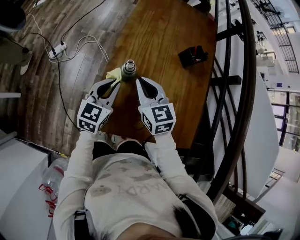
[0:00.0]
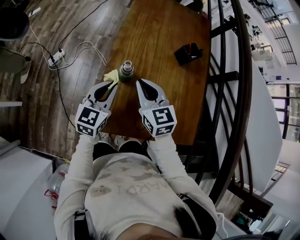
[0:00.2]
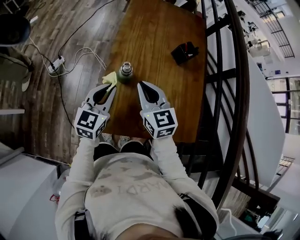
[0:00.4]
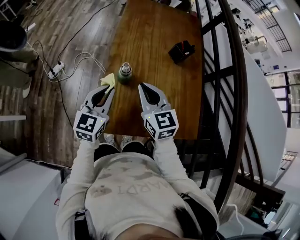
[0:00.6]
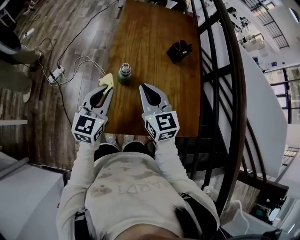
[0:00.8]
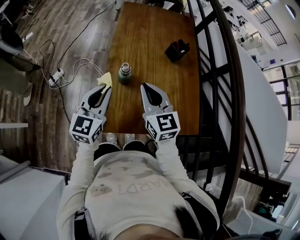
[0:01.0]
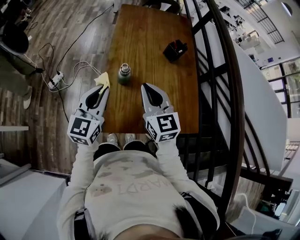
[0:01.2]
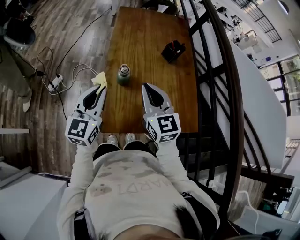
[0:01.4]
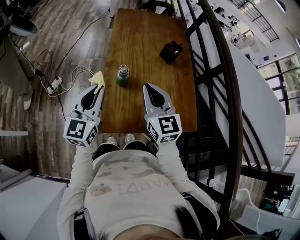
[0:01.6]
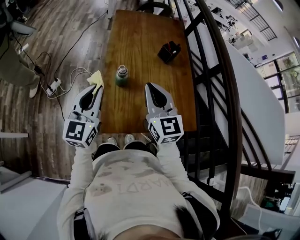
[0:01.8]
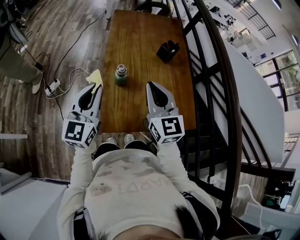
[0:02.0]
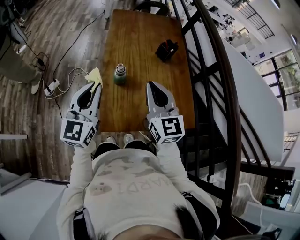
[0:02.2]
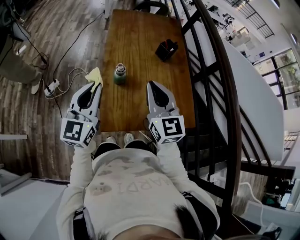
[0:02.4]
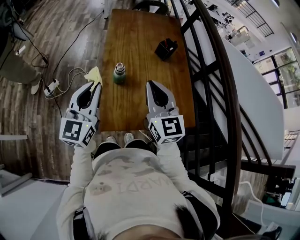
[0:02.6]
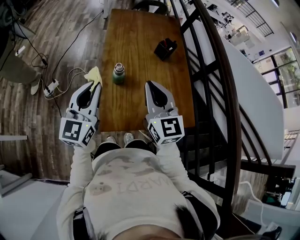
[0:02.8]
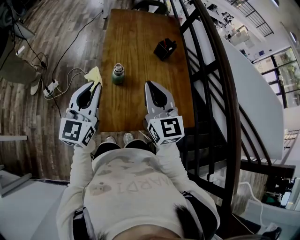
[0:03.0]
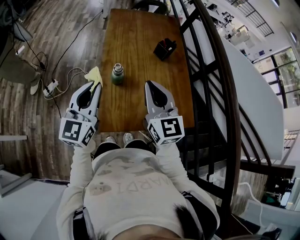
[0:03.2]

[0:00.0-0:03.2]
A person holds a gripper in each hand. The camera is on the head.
0:00.0 to 0:01.6: The right gripper goes approximately 15 cm upward and backward, and turns by some 20 degrees; the left gripper is displaced upward, backward and to the left by roughly 15 cm.
0:01.6 to 0:03.2: The grippers make only small movements.

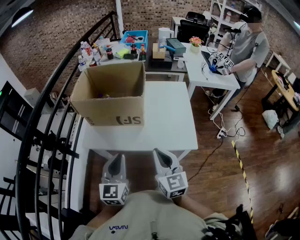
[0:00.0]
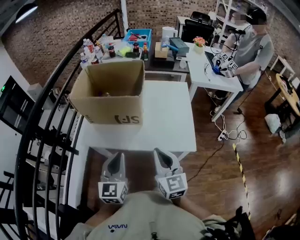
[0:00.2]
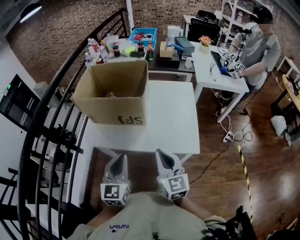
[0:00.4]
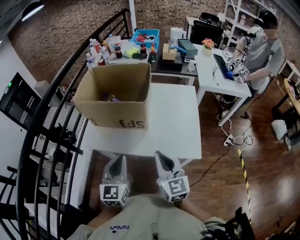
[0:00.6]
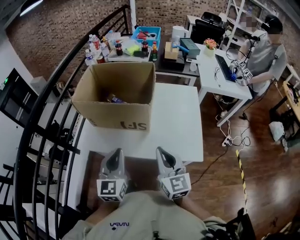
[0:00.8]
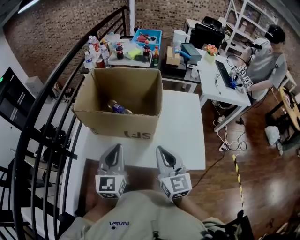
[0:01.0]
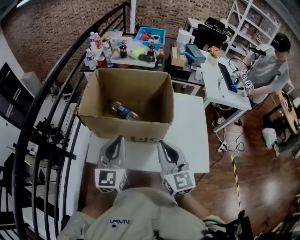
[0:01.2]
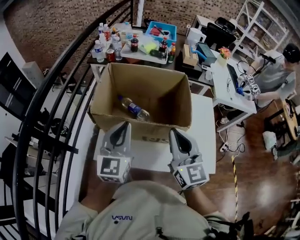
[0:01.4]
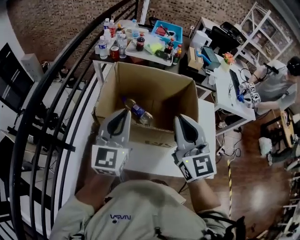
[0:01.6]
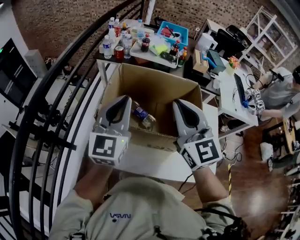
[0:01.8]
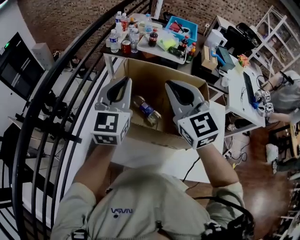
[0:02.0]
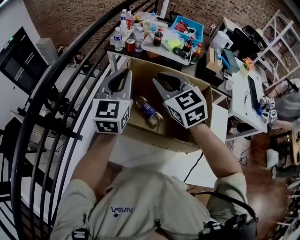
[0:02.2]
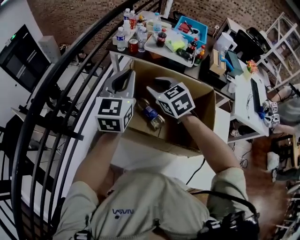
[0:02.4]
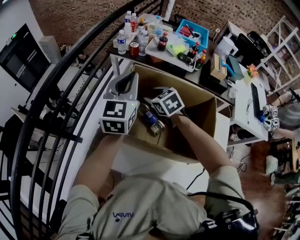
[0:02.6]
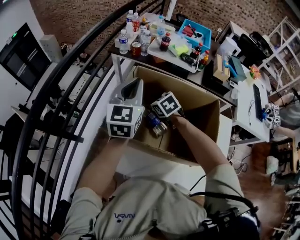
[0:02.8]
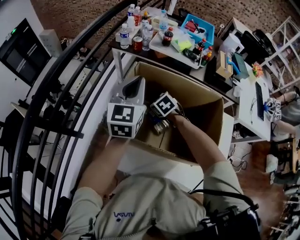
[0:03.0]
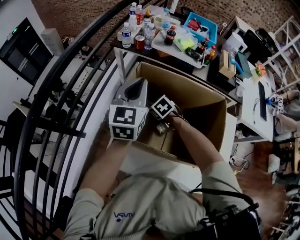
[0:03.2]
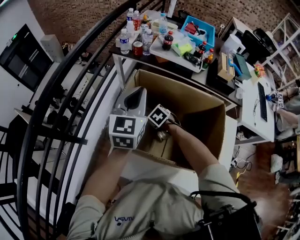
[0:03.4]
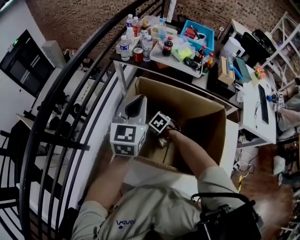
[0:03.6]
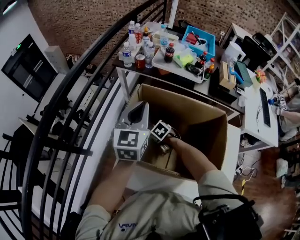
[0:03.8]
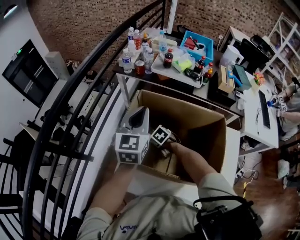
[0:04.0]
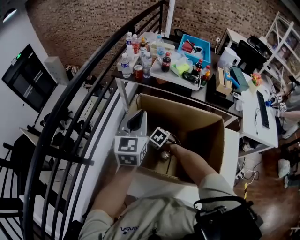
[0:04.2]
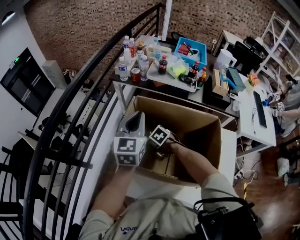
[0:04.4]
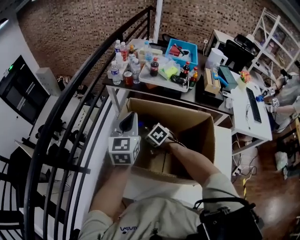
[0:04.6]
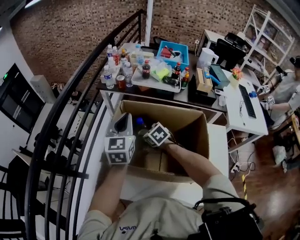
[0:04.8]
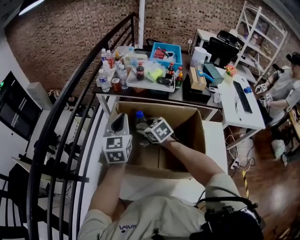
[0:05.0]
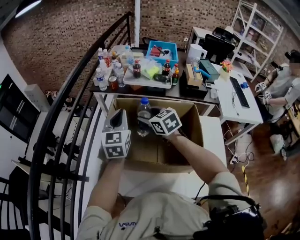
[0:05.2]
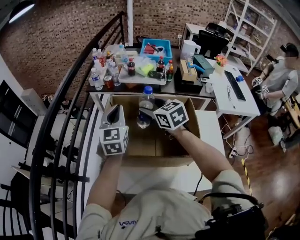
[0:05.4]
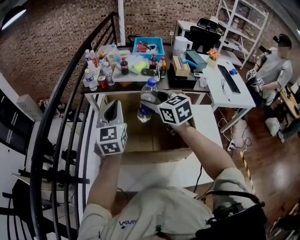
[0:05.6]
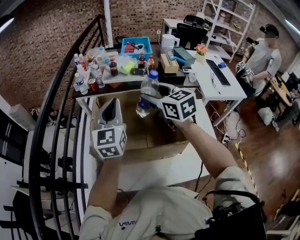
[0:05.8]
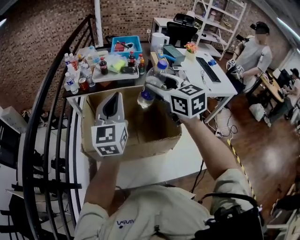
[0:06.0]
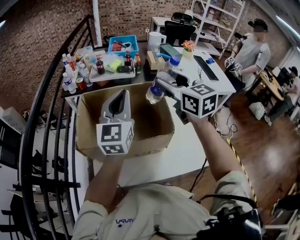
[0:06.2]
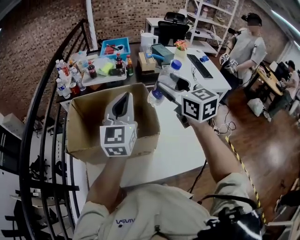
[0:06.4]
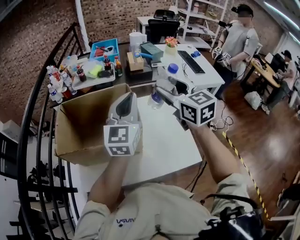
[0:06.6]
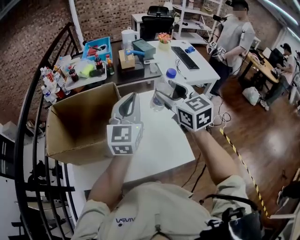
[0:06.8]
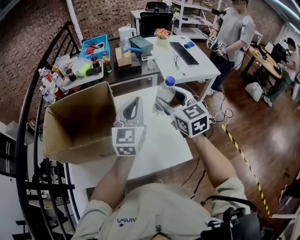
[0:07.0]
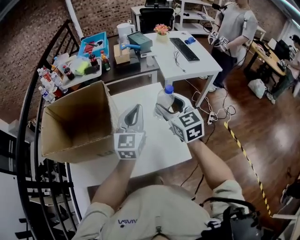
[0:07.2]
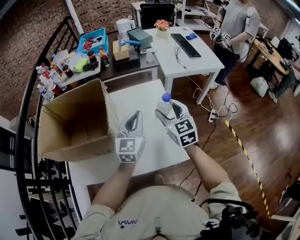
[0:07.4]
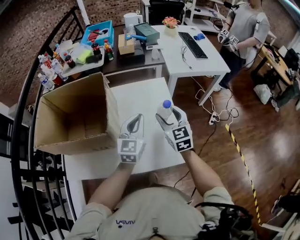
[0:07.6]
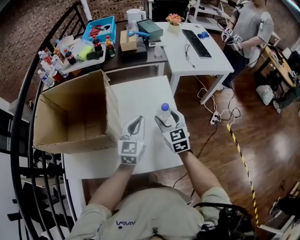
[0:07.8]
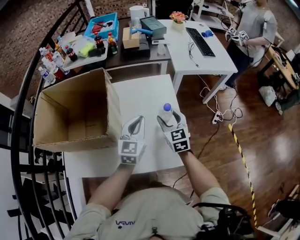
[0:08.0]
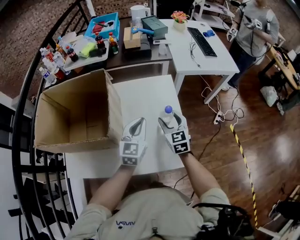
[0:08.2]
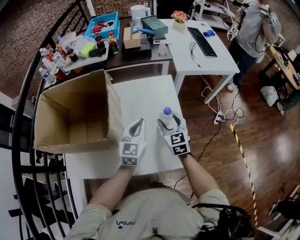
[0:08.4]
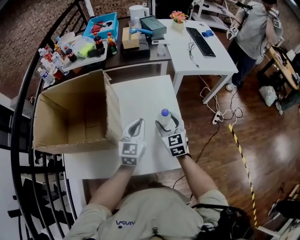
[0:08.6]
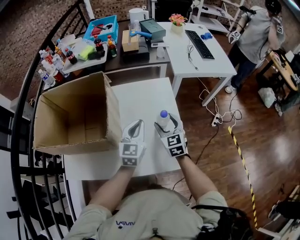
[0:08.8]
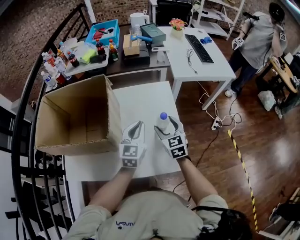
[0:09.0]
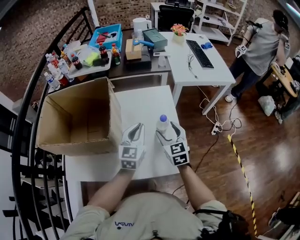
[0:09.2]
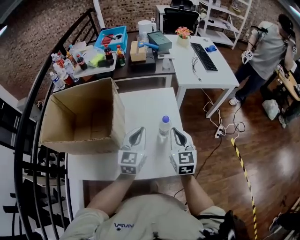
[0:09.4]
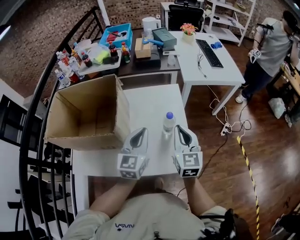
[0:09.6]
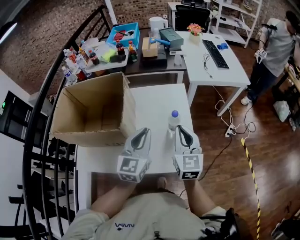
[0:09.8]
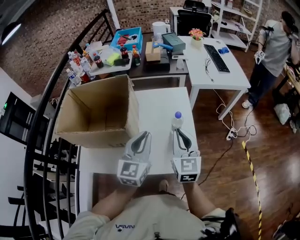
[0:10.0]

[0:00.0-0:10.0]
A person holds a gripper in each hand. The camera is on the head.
0:00.0 to 0:01.4: Both grippers travel together forward, about 25 cm.
0:01.4 to 0:02.8: The left gripper moves forward, roughly 25 cm. The right gripper heads forward and downward, covering about 40 cm, tilts its fingers roughly 50 degrees downward, and opens up.
0:02.8 to 0:04.2: The right gripper moves downward, roughly 15 cm, and swivels roughly 20 degrees.
0:04.2 to 0:05.8: The left gripper shifts about 10 cm upward. Meanwhile the right gripper moves upward, roughly 40 cm, and tilts its fingers approximately 50 degrees upward.
0:05.8 to 0:07.2: The two grippers go roughly 40 cm to the right. The right gripper swivels some 20 degrees.
0:07.2 to 0:08.6: Both grippers move downward, about 15 cm.
0:08.6 to 0:10.0: The two grippers go some 15 cm upward and backward. The right gripper closes its fingers.

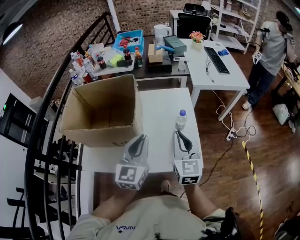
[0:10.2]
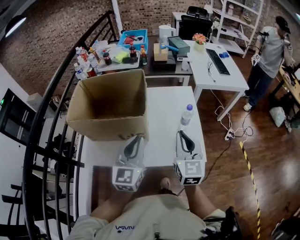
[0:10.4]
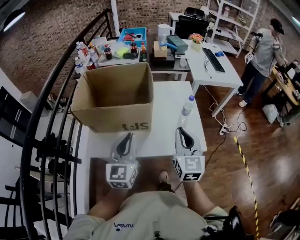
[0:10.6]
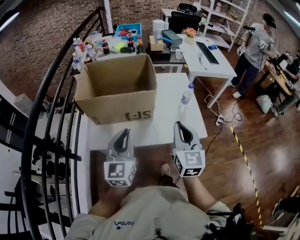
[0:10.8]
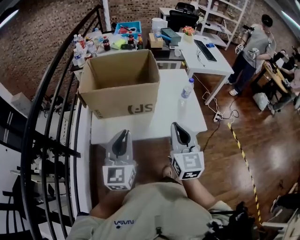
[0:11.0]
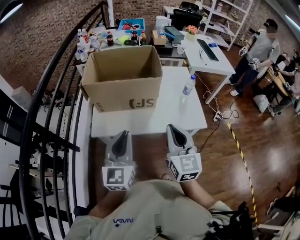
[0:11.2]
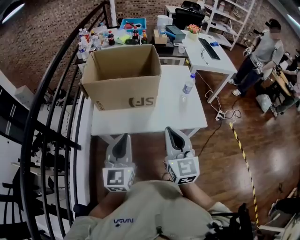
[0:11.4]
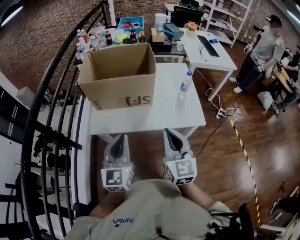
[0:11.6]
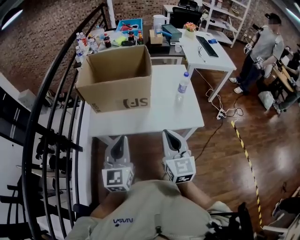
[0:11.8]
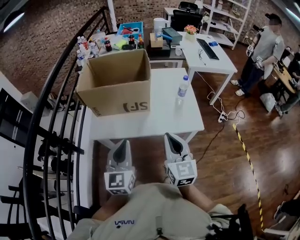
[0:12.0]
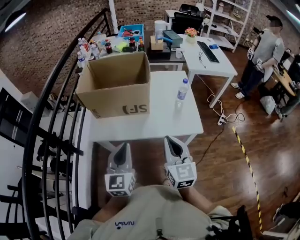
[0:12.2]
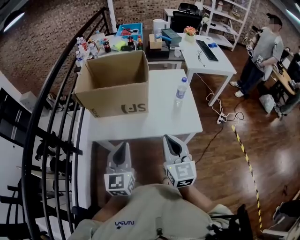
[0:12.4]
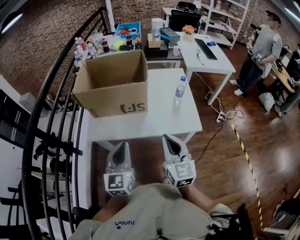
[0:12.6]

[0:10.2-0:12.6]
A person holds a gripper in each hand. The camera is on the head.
0:10.2 to 0:11.4: Both grippers travel together backward and to the left, some 30 cm.
0:11.4 to 0:12.6: The left gripper ends up roughly 5 cm from where it was; the right gripper moves to the right, about 5 cm.

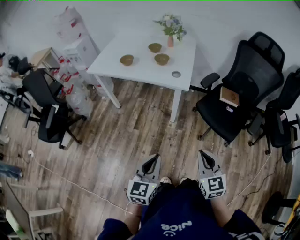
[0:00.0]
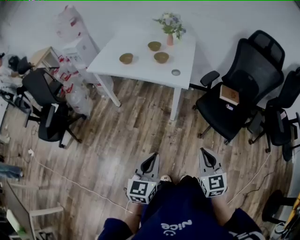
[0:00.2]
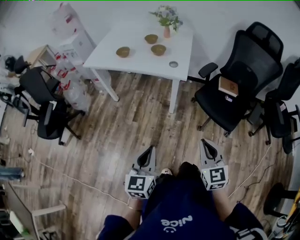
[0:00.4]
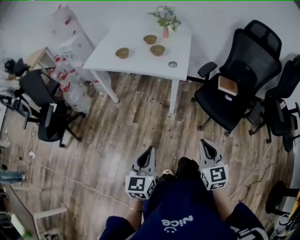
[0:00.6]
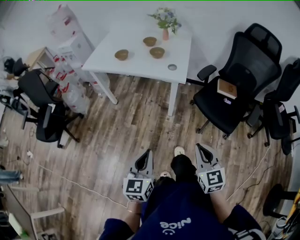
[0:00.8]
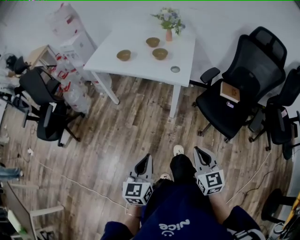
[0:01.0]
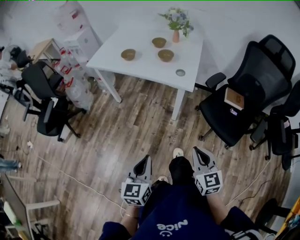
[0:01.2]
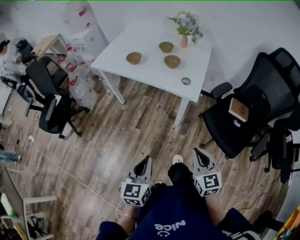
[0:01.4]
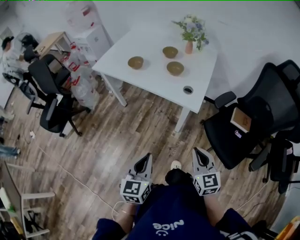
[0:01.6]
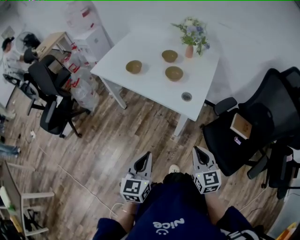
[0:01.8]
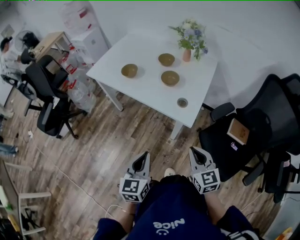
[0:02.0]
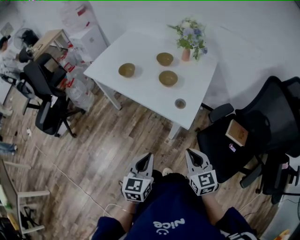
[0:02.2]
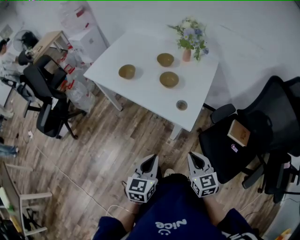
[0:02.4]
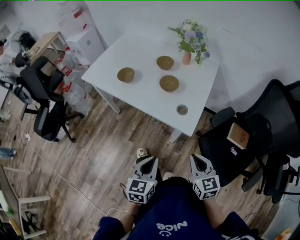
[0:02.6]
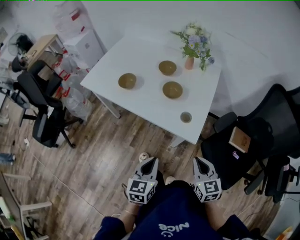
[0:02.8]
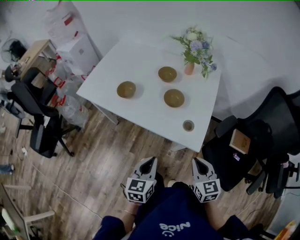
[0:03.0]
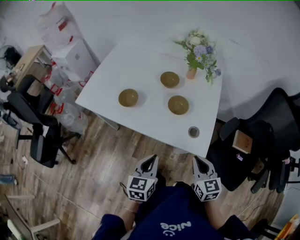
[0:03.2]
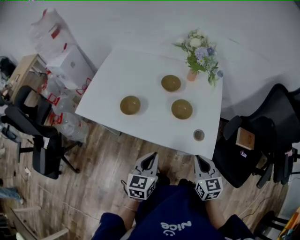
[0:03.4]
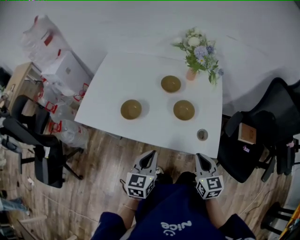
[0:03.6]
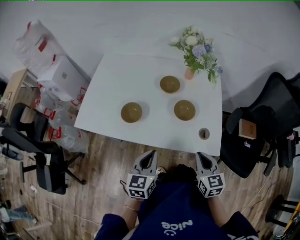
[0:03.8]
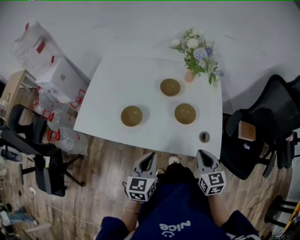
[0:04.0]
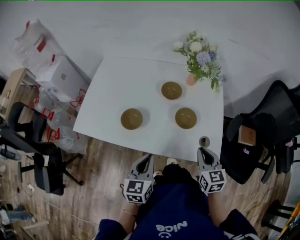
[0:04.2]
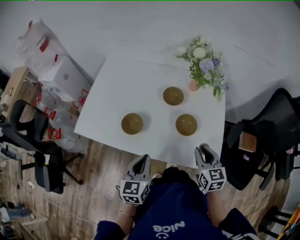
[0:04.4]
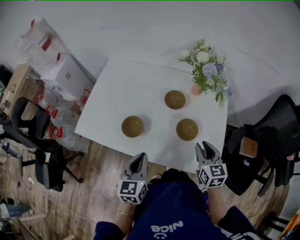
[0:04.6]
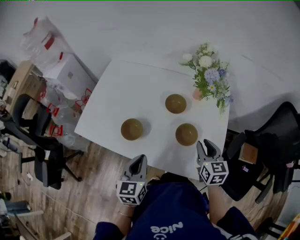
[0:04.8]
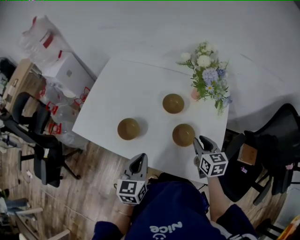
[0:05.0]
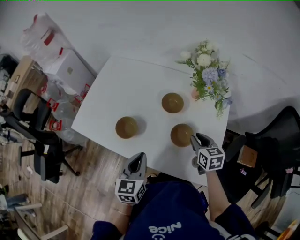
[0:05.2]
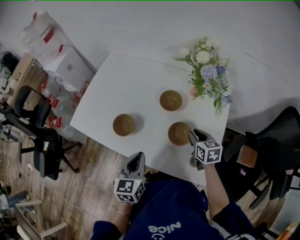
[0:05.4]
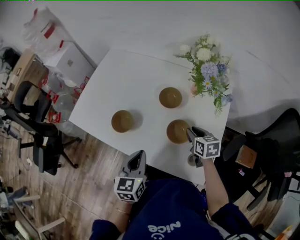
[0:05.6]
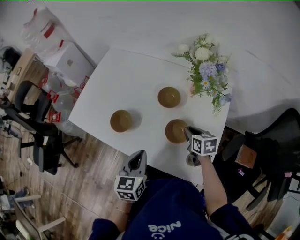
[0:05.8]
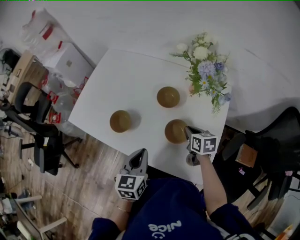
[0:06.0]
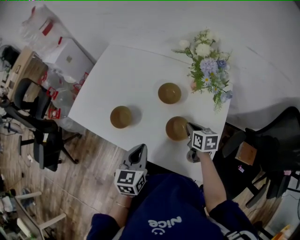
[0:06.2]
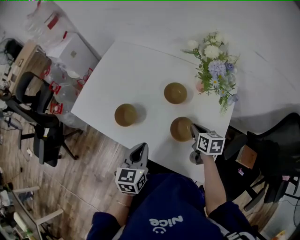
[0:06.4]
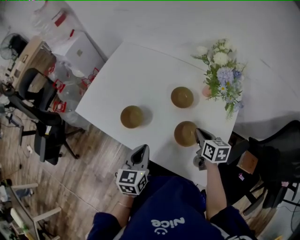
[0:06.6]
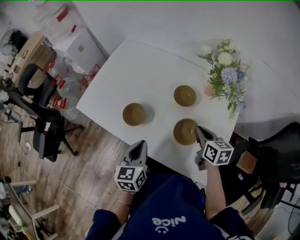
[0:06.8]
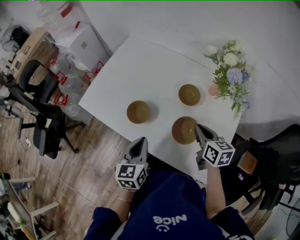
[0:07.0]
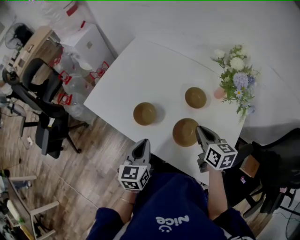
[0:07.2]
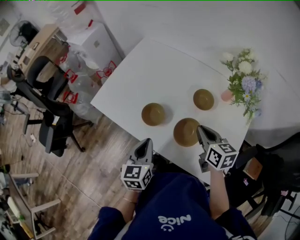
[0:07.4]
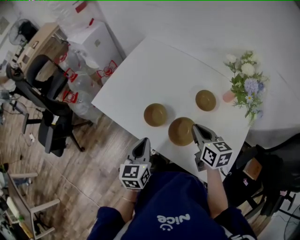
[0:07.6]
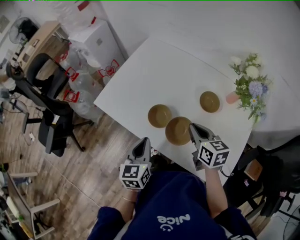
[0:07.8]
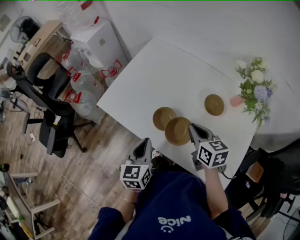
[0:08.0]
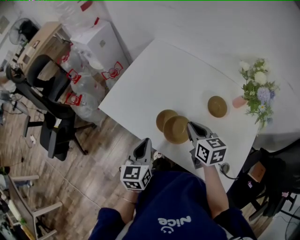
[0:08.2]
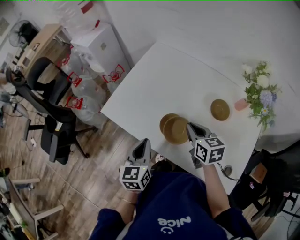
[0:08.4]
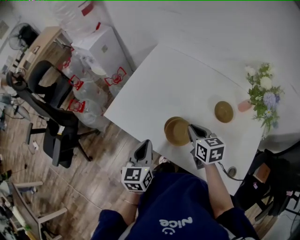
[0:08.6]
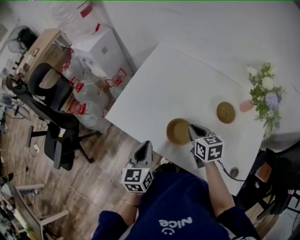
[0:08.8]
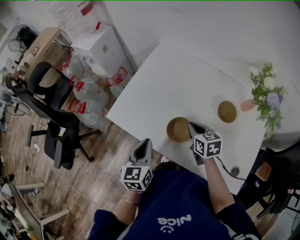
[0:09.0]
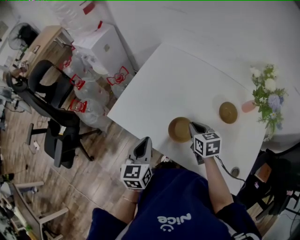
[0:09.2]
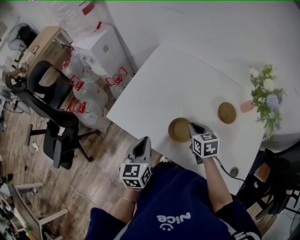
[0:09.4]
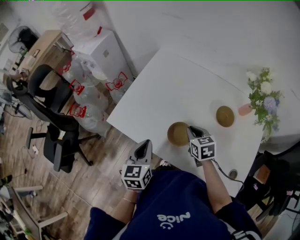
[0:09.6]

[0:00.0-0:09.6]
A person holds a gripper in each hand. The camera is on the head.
0:00.0 to 0:01.6: Both grippers move forward, some 20 cm.
0:01.6 to 0:03.2: The two grippers go roughly 30 cm forward.
0:03.2 to 0:04.8: The right gripper travels forward by some 25 cm, and opens its fingers, while the left gripper travels forward and to the left by some 20 cm.
0:04.8 to 0:06.4: The left gripper heads to the right, covering roughly 5 cm. The right gripper is displaced downward and forward by approximately 10 cm, swivels approximately 30 degrees, and closes.
0:06.4 to 0:08.0: The left gripper heads to the left, covering approximately 15 cm. Meanwhile the right gripper moves to the left and upward, about 25 cm.
0:08.0 to 0:09.6: The right gripper is displaced downward, forward and to the left by some 10 cm, while the left gripper goes some 10 cm forward and to the left.
